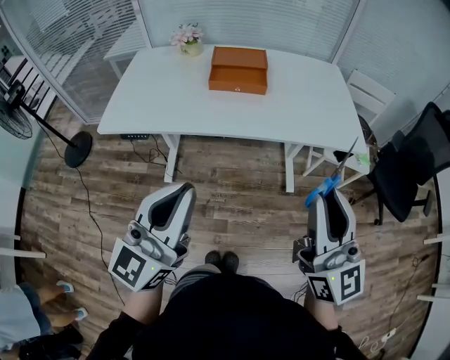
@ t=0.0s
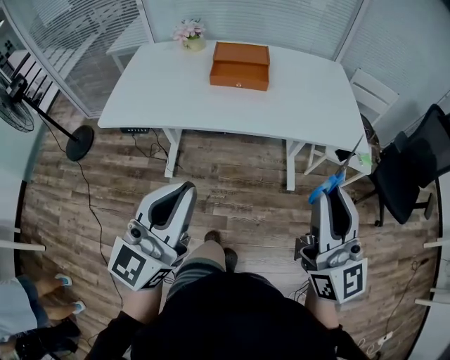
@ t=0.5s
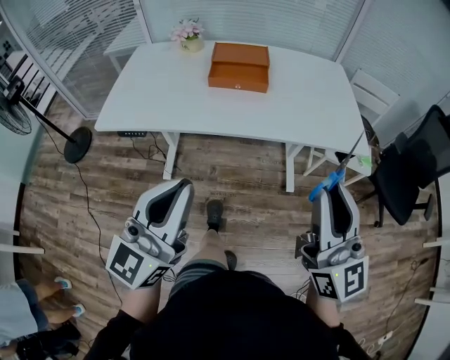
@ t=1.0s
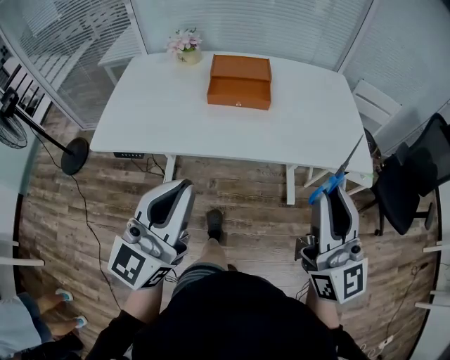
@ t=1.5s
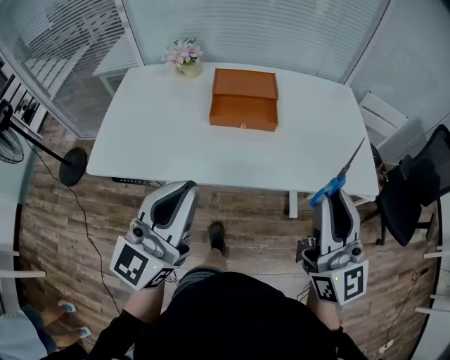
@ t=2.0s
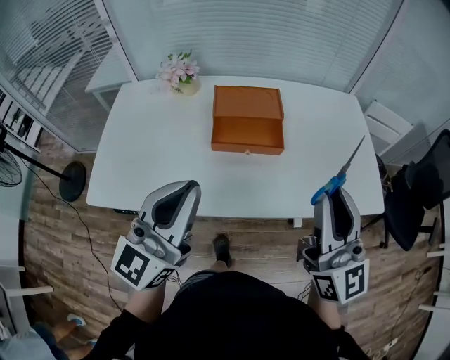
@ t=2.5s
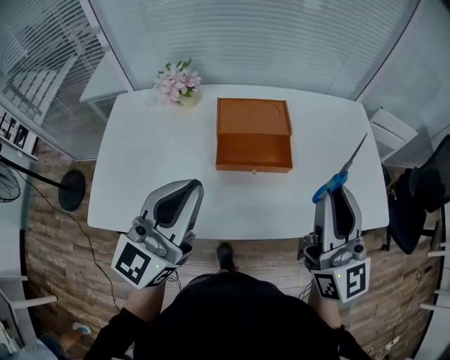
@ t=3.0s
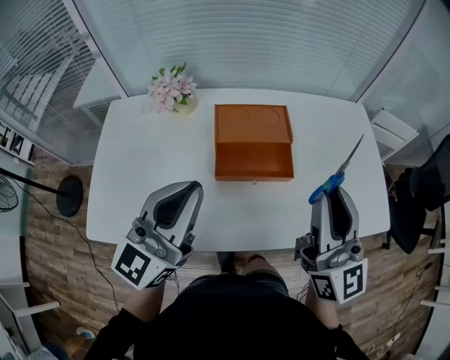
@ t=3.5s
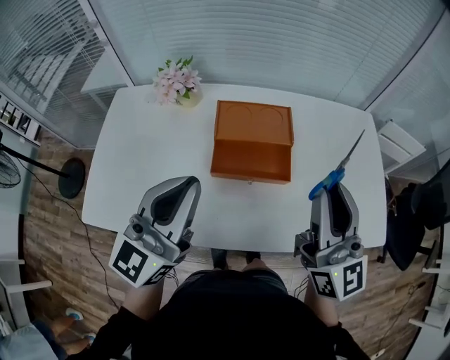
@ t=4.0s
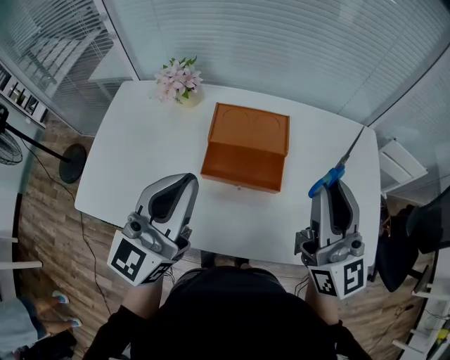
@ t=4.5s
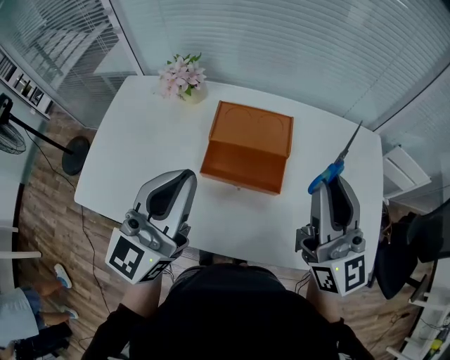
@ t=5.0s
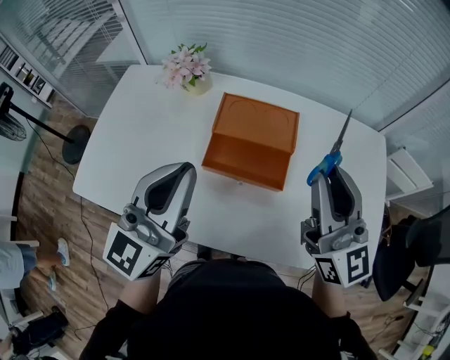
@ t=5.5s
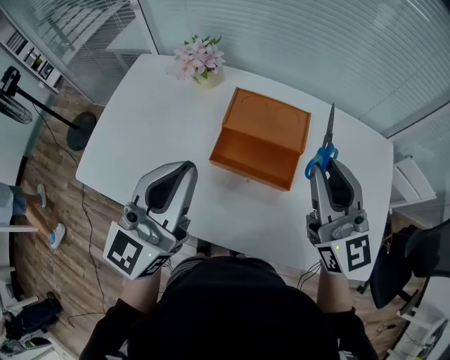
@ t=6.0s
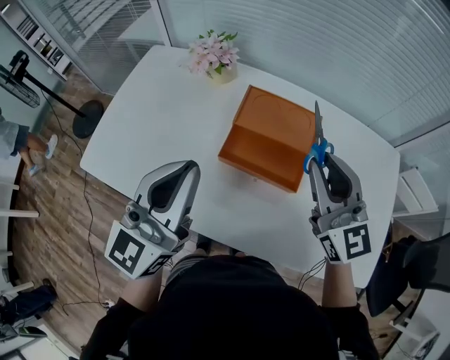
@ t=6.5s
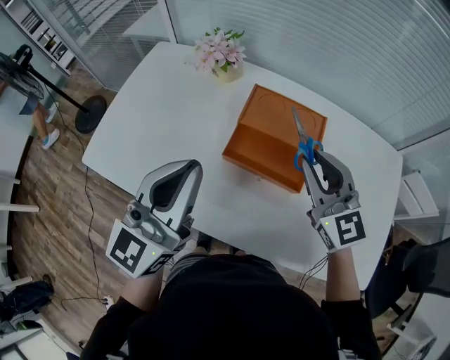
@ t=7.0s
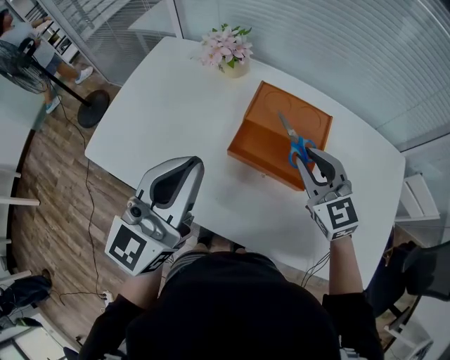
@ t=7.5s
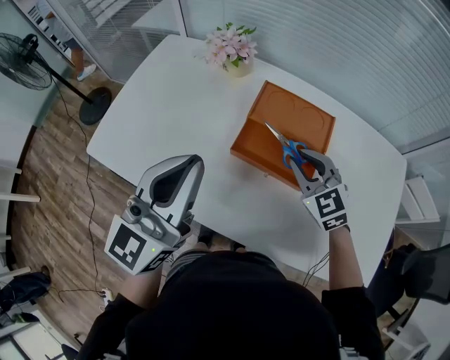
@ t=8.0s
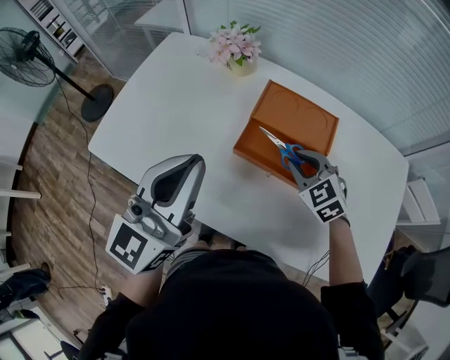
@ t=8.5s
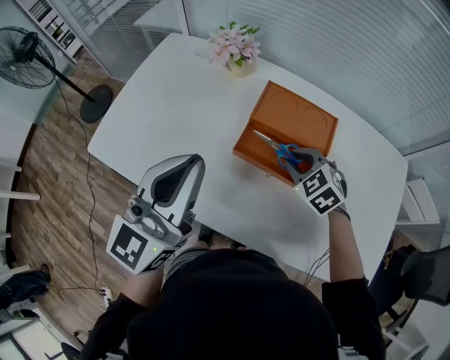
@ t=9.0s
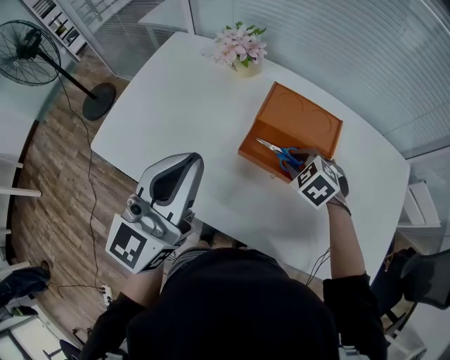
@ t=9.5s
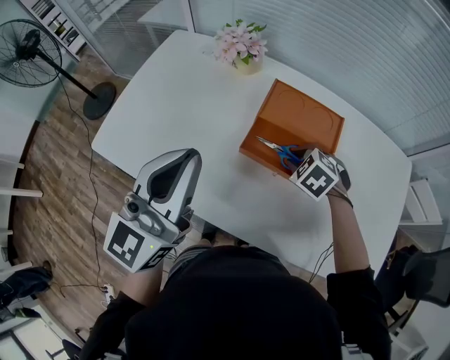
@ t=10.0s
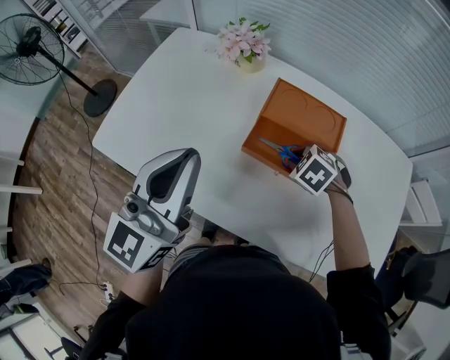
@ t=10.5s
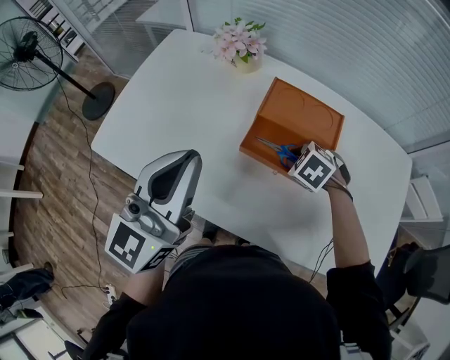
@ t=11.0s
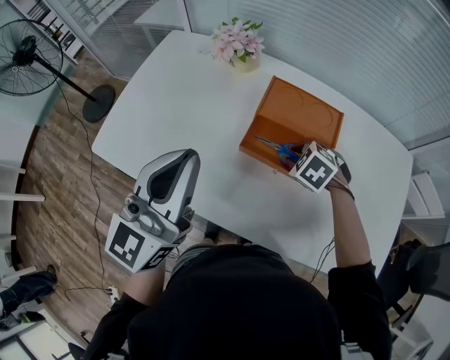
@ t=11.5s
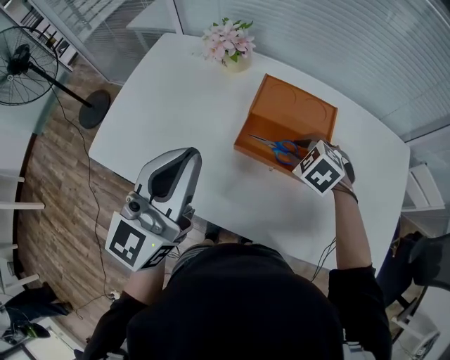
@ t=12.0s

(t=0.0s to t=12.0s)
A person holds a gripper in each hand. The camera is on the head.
t=0.0s - t=2.0s: Both grippers move forward, about 20 cm.
t=2.0s - t=4.0s: Both grippers move forward, approximately 20 cm.
t=4.0s - t=6.0s: The right gripper is displaced forward by some 10 cm, and changes its angle by approximately 20 degrees.
t=6.0s - t=8.0s: The right gripper is displaced downward by about 20 cm, and tips its fingers downward by some 30 degrees.
t=8.0s - t=10.0s: The right gripper travels downward by about 10 cm, and points its fingers roughly 40 degrees further downward.
t=10.0s - t=12.0s: The grippers stay close to where they were, moving slightly.

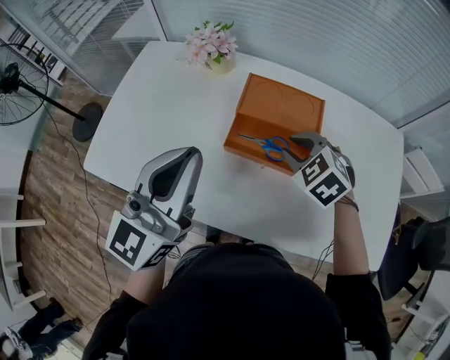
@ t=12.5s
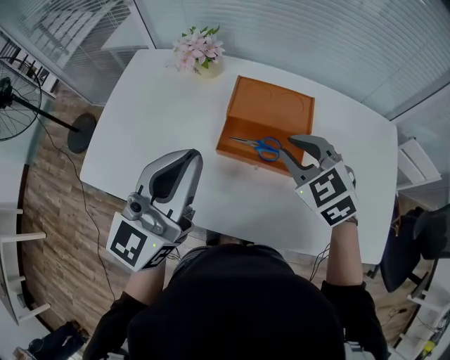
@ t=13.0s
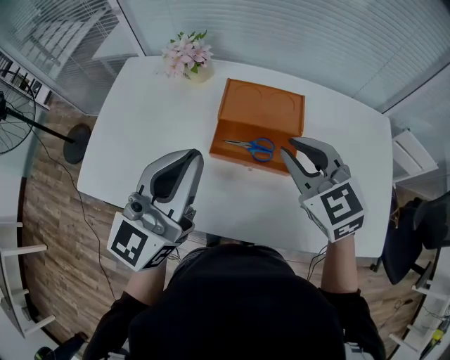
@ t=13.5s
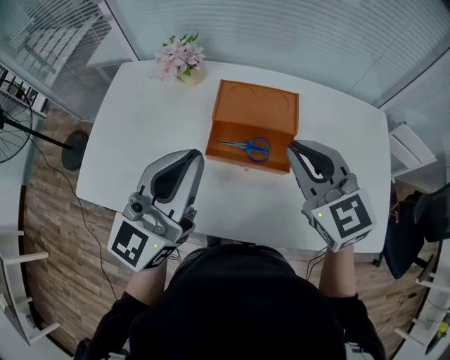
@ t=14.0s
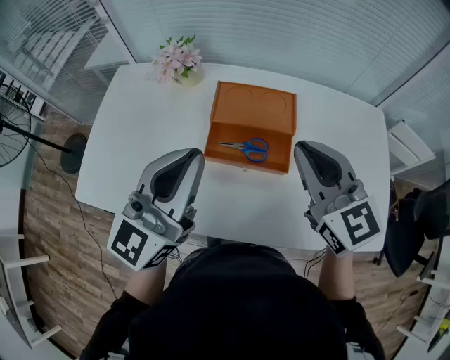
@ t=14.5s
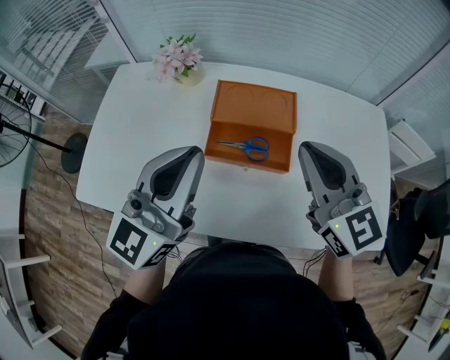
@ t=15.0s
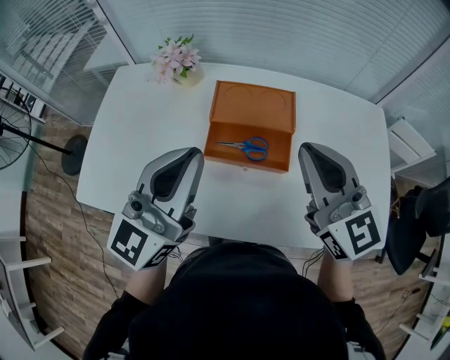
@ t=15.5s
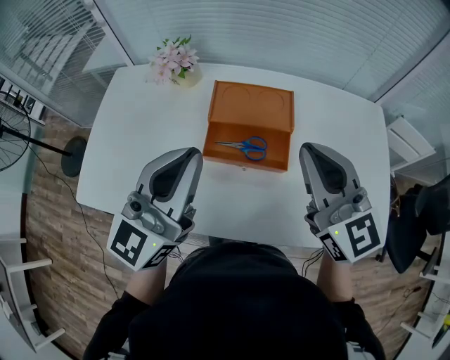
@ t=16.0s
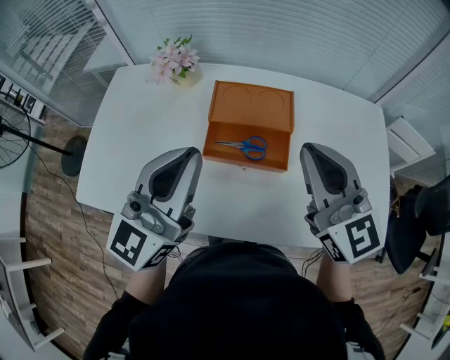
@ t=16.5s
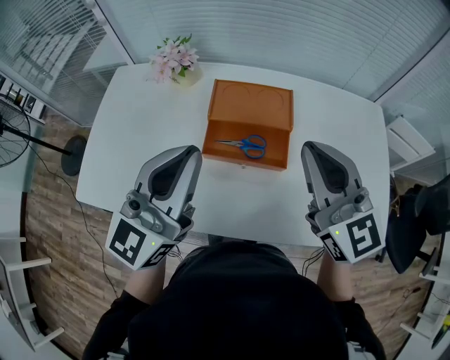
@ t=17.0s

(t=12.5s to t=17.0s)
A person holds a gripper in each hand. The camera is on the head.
t=12.5s - t=14.5s: The right gripper shifts approximately 20 cm upward, tips its fingers upward by about 40 degrees, and closes its fingers.
t=14.5s - t=17.0s: The grippers make only small movements.

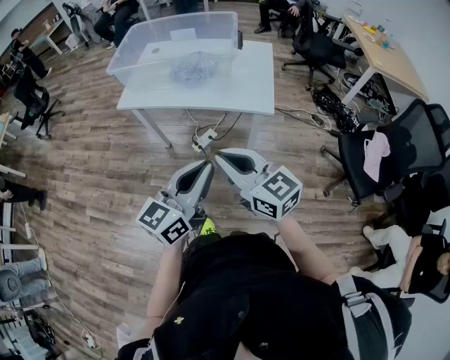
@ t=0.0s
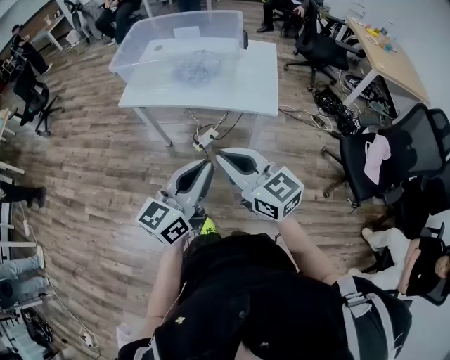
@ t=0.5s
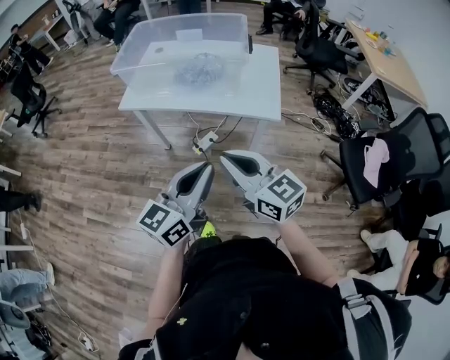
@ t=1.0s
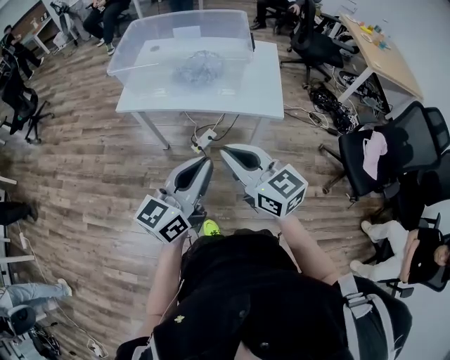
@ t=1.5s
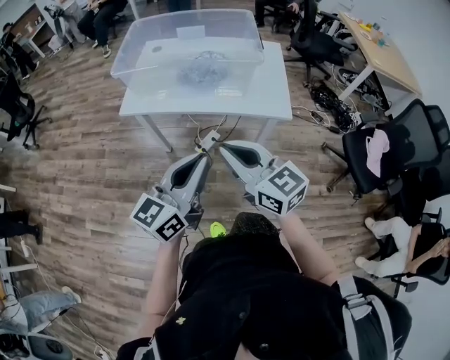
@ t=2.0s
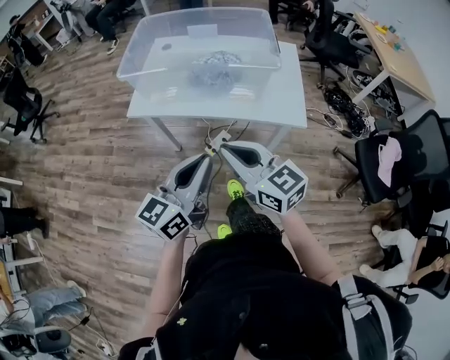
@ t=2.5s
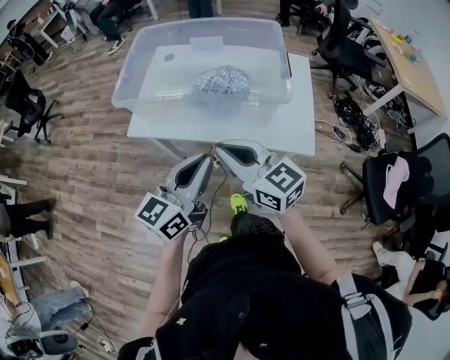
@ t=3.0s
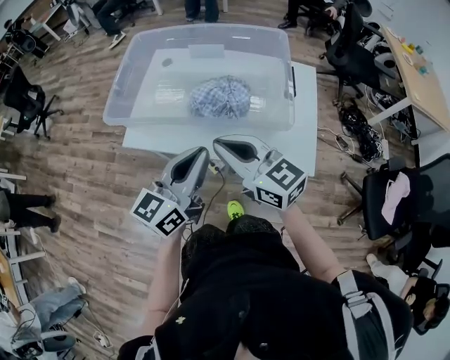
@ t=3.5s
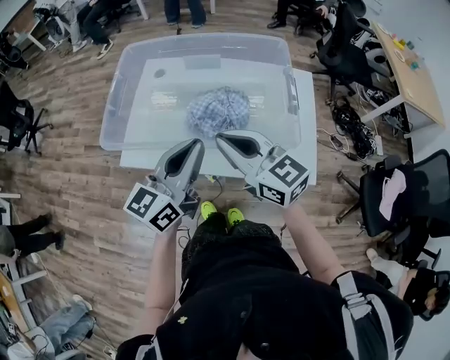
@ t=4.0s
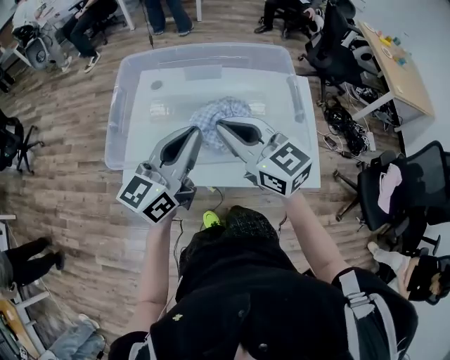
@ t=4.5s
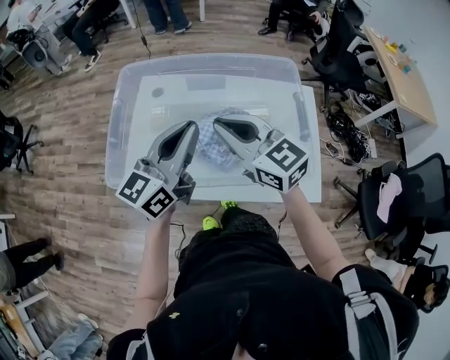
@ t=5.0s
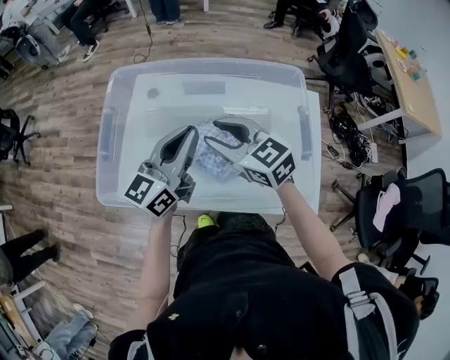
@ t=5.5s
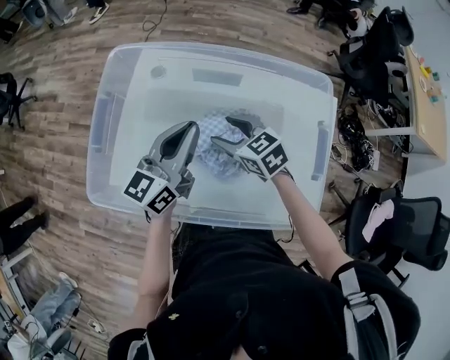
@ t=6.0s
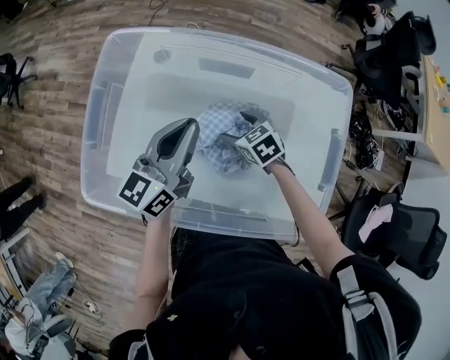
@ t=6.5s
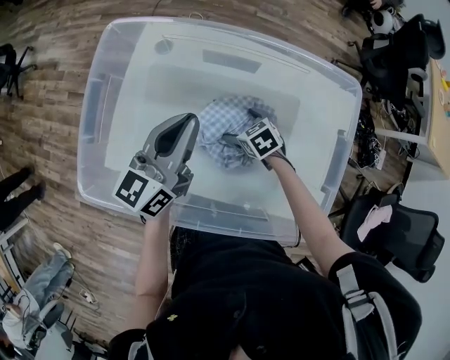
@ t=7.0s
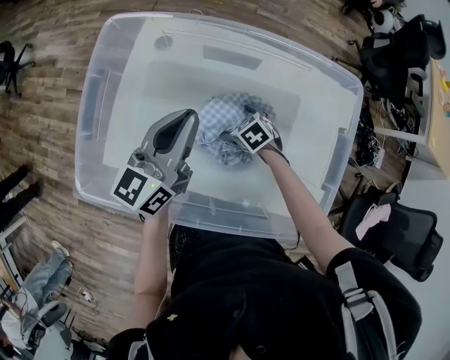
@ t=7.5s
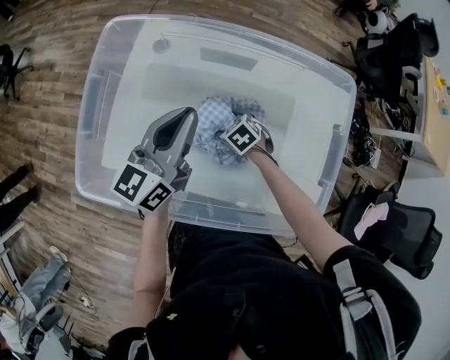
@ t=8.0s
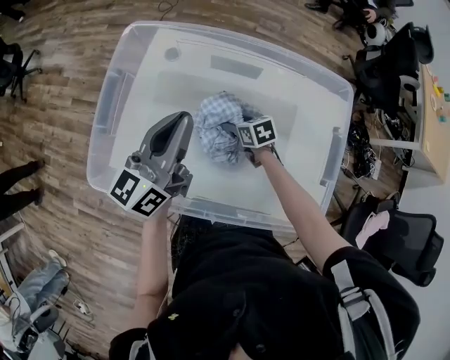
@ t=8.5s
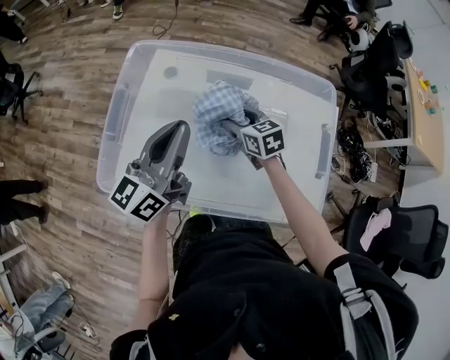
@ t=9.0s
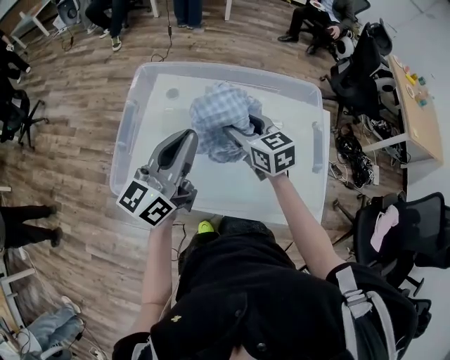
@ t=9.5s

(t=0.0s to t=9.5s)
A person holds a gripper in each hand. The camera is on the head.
t=0.0s - t=2.0s: Both grippers move to the left and forward, about 15 cm.
t=2.0s - t=4.0s: Both grippers move forward, some 40 cm.
t=4.0s - t=5.5s: The grippers both shift forward by roughly 20 cm.
t=5.5s - t=7.5s: The left gripper shifts about 10 cm downward and forward. Meanwhile the right gripper moves downward, about 35 cm, points its fingers roughly 40 degrees further downward, and opens.
t=7.5s - t=9.5s: The right gripper is displaced upward by roughly 30 cm, tips its fingers upward by roughly 40 degrees, and closes up. The left gripper travels upward and backward by roughly 15 cm.

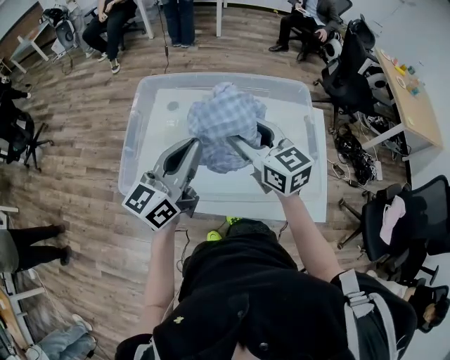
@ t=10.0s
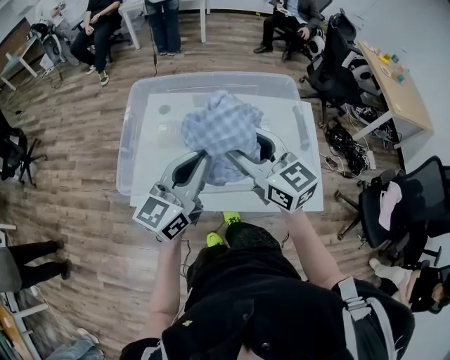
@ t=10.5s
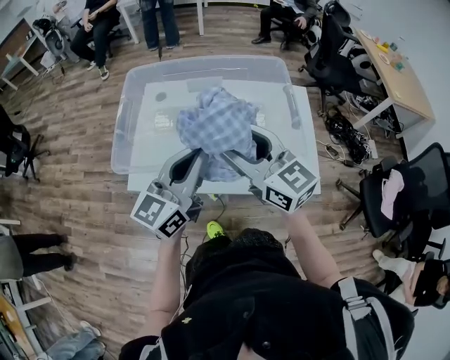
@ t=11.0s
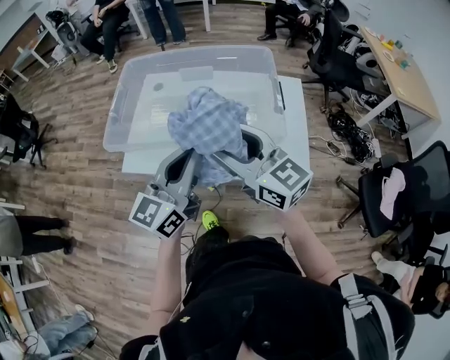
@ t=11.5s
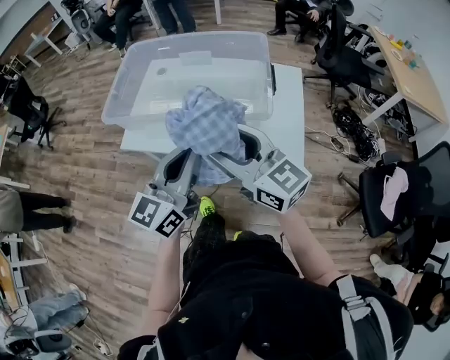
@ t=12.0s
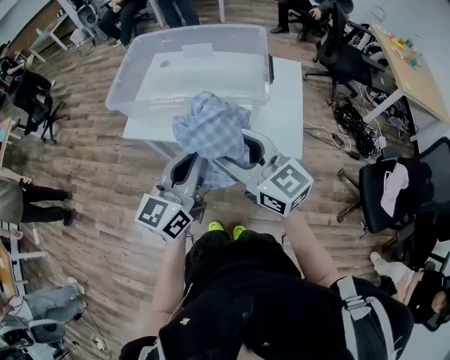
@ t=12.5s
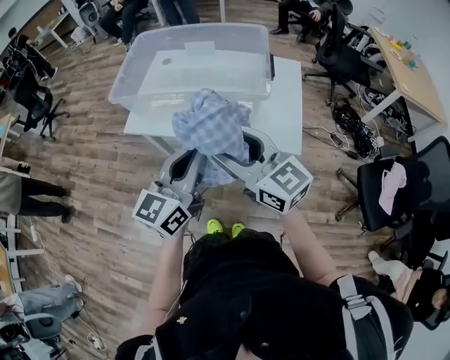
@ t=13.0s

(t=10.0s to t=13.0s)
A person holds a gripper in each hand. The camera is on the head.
t=10.0s - t=11.5s: The left gripper travels backward and to the right by some 20 cm, while the right gripper shifts roughly 20 cm backward.
t=11.5s - t=13.0s: Both grippers travel together backward, about 15 cm.
